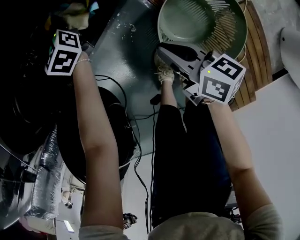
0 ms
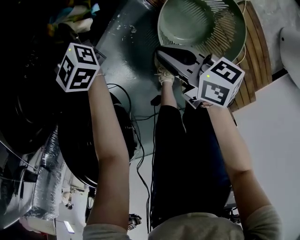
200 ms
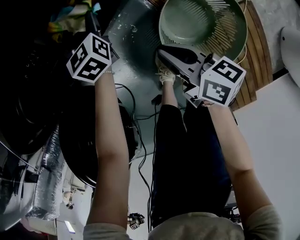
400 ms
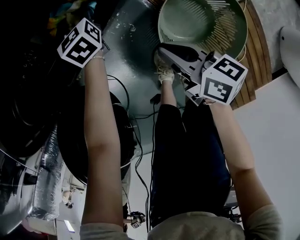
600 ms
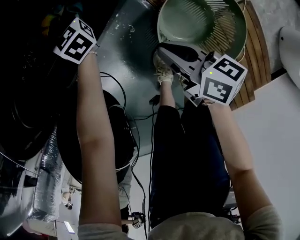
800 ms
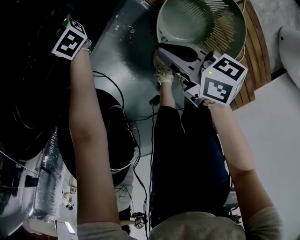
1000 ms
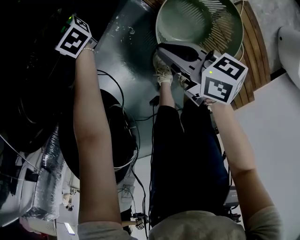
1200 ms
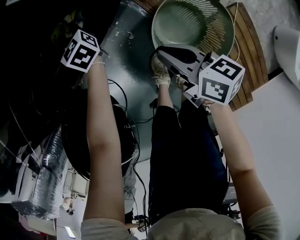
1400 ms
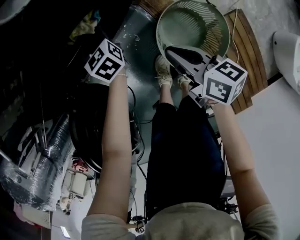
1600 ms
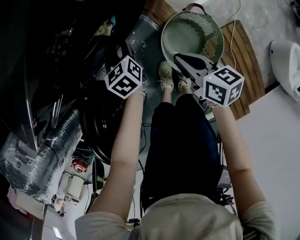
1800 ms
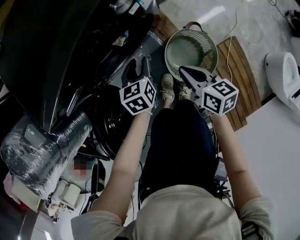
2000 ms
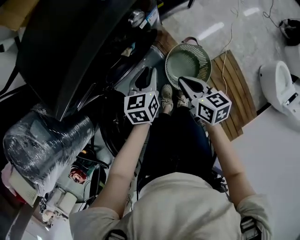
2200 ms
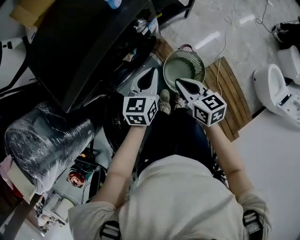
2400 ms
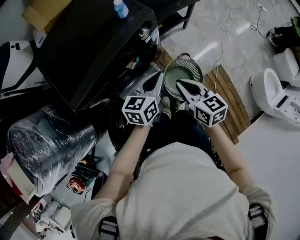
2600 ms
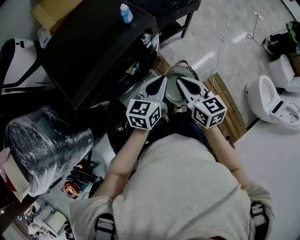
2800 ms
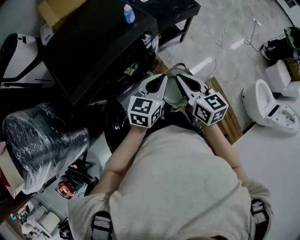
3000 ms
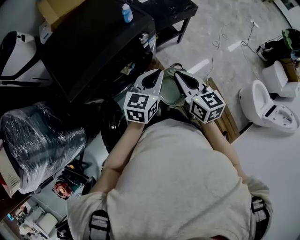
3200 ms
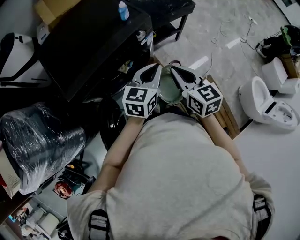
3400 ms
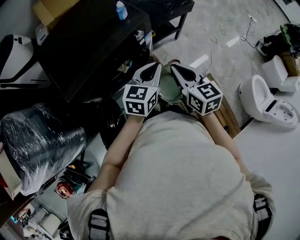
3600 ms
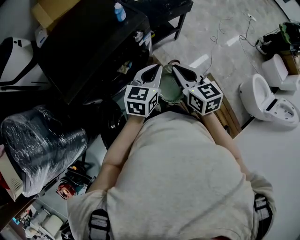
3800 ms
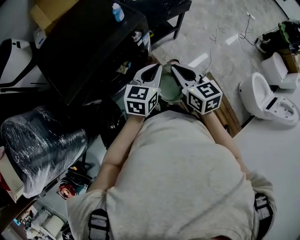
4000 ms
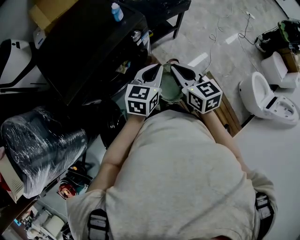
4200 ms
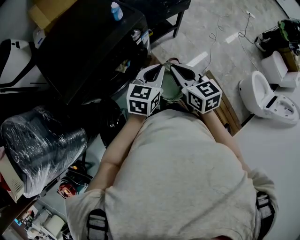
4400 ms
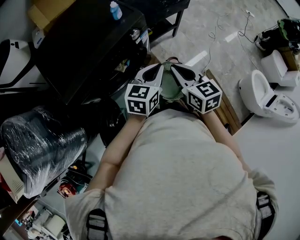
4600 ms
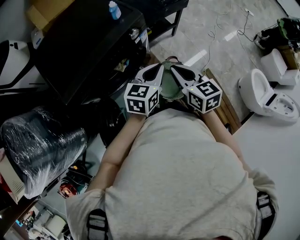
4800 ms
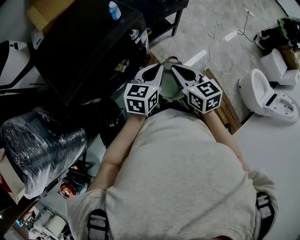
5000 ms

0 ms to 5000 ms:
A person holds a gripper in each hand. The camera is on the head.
0 ms to 1600 ms: The right gripper goes approximately 10 cm upward; the left gripper goes forward and backward, some 15 cm each way, reversing 2 times.
1600 ms to 3400 ms: The two grippers go roughly 40 cm upward. The left gripper turns by about 50 degrees, and closes up, while the right gripper changes its angle by roughly 40 degrees.
3400 ms to 5000 ms: The grippers move only a little.

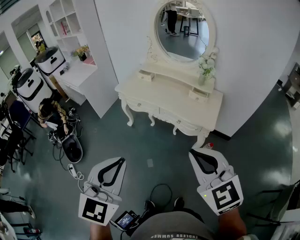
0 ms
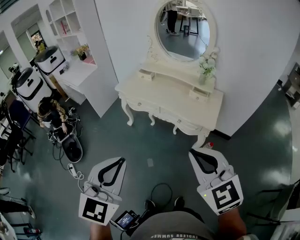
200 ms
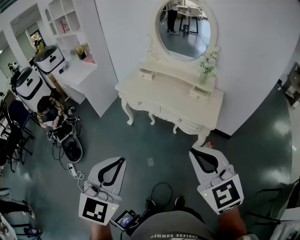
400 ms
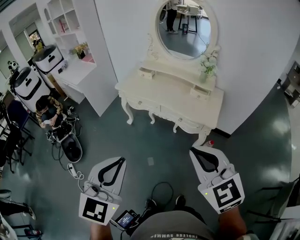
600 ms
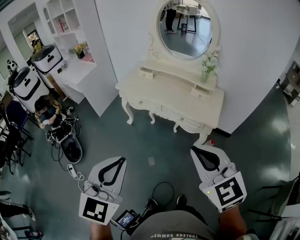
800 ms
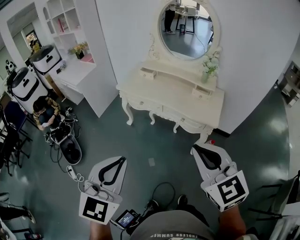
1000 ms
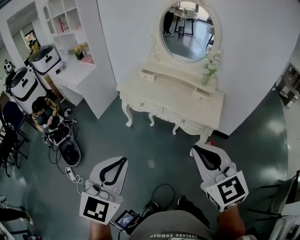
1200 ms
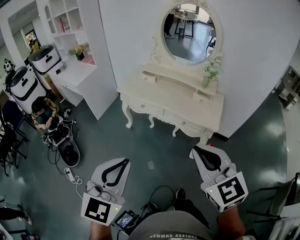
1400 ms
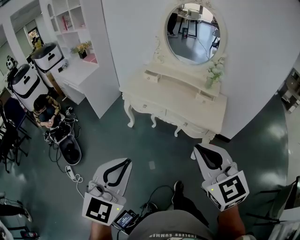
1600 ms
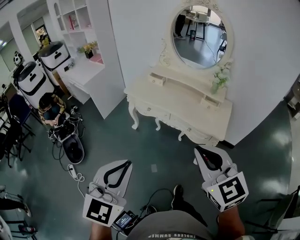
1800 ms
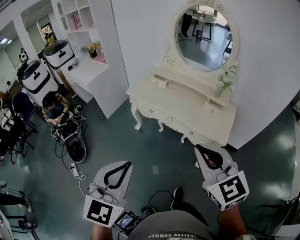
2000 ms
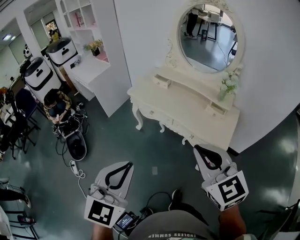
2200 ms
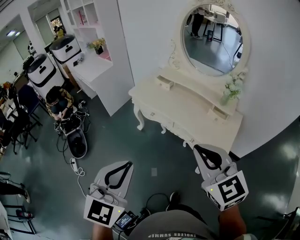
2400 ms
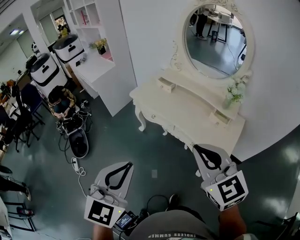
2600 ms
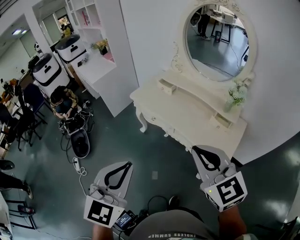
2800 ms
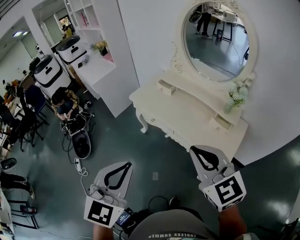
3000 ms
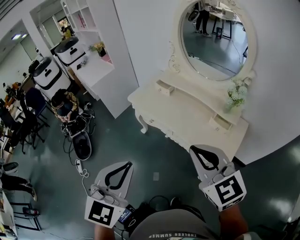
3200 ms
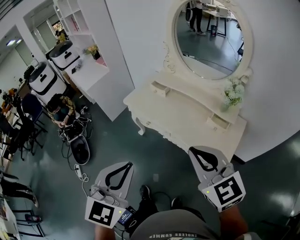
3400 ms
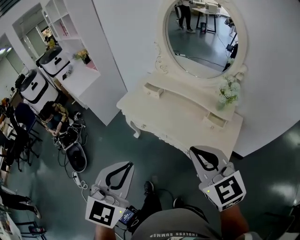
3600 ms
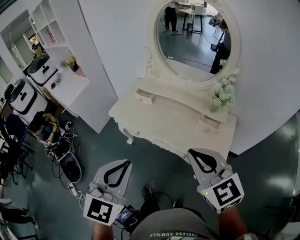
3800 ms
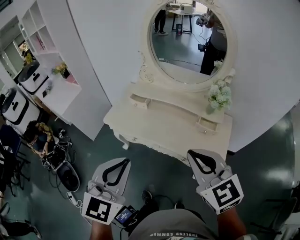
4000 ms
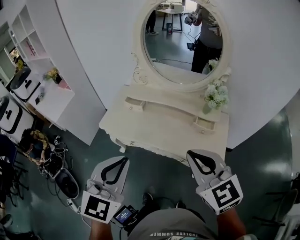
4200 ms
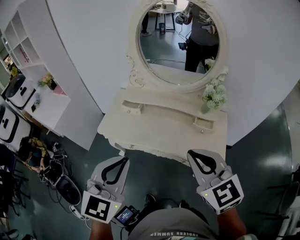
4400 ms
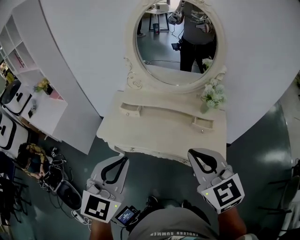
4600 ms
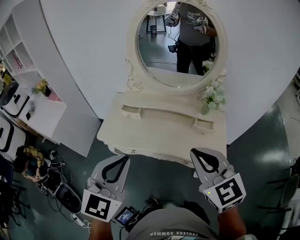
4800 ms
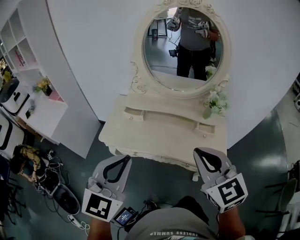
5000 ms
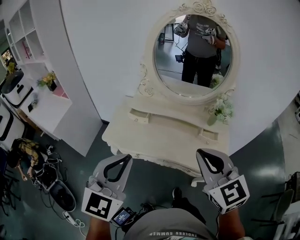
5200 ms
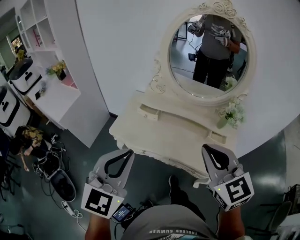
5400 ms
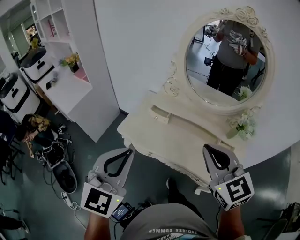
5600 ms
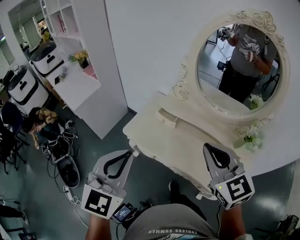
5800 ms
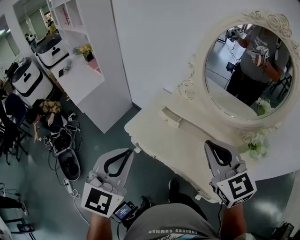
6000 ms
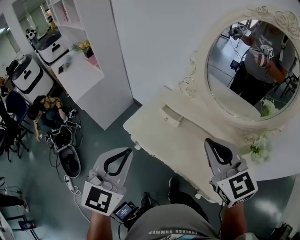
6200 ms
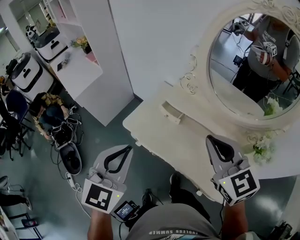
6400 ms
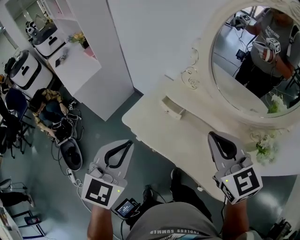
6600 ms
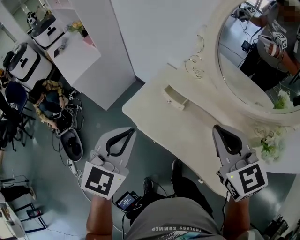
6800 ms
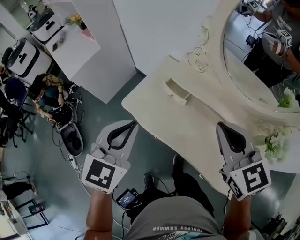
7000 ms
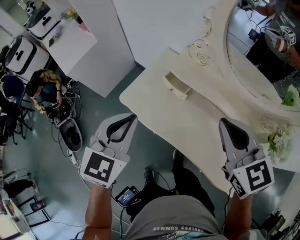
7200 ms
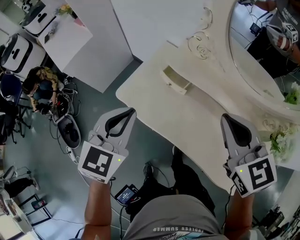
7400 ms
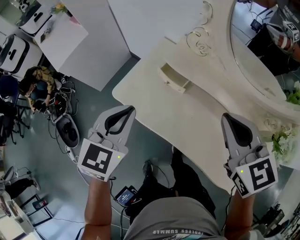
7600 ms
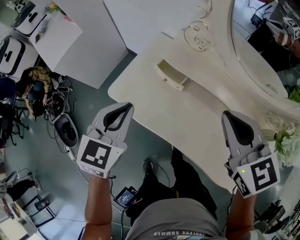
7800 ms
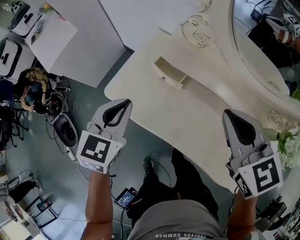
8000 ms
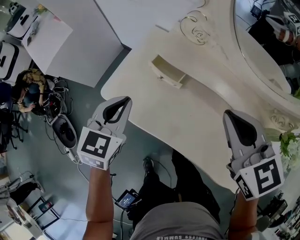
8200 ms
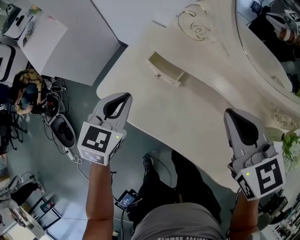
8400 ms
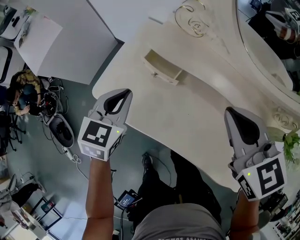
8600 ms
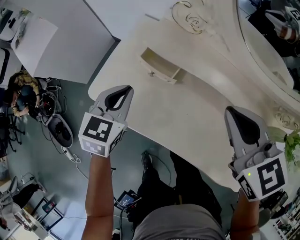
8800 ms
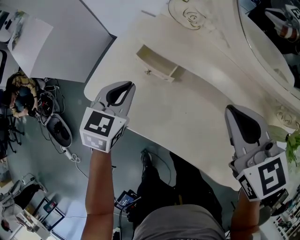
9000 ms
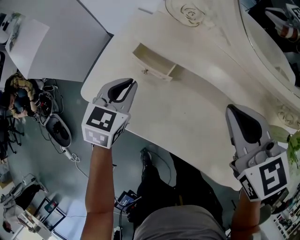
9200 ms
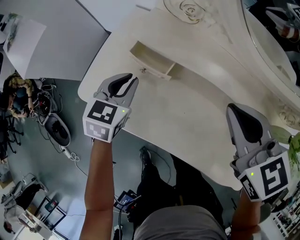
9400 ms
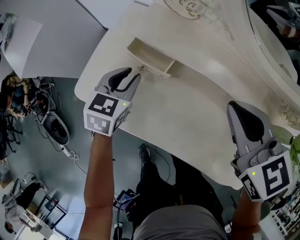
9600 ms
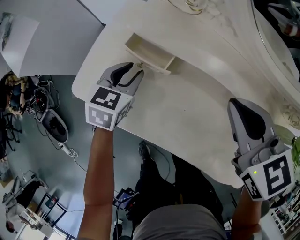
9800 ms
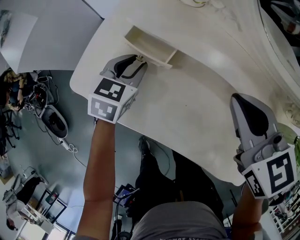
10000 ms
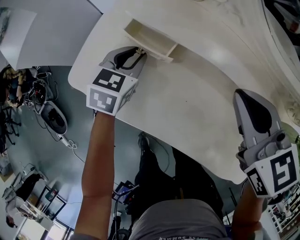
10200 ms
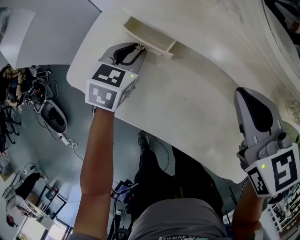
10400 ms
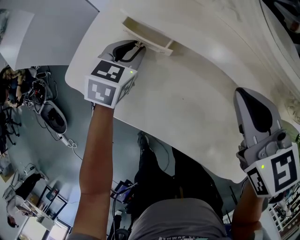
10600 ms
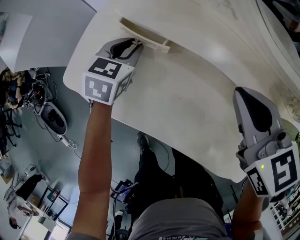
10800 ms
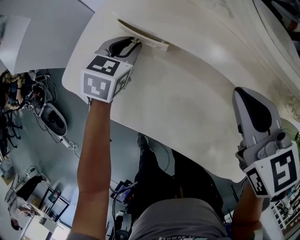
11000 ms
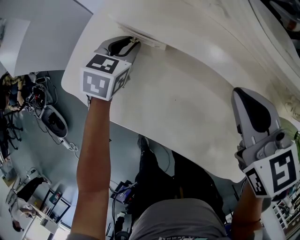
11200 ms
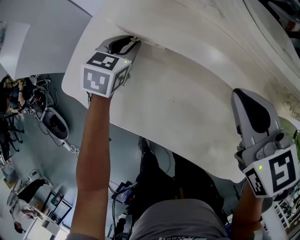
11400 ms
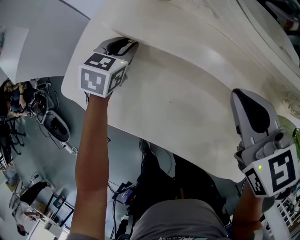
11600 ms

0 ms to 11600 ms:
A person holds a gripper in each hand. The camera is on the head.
0 ms to 1400 ms: Both grippers travel together to the left, some 10 cm.
1400 ms to 2800 ms: Both grippers travel together forward and to the right, roughly 20 cm.
2800 ms to 4400 ms: The right gripper heads forward, covering some 15 cm, and rotates about 20 degrees. Meanwhile the left gripper heads forward, covering some 25 cm, and swivels some 20 degrees.
4400 ms to 5800 ms: The left gripper shifts roughly 15 cm to the left and forward; the right gripper heads forward and to the left, covering approximately 20 cm.
5800 ms to 7200 ms: Both grippers move forward and downward, about 20 cm.
7200 ms to 8800 ms: The right gripper heads downward and forward, covering some 15 cm; the left gripper moves downward and forward, about 25 cm.
8800 ms to 10200 ms: The left gripper heads downward, forward and to the right, covering approximately 15 cm, and opens up; the right gripper goes about 5 cm downward.
10200 ms to 11600 ms: The left gripper moves forward, some 5 cm. Meanwhile the right gripper heads to the right, covering about 5 cm.

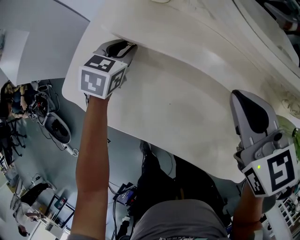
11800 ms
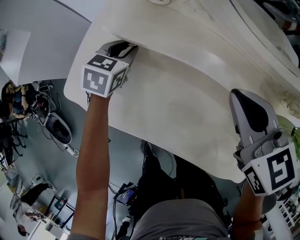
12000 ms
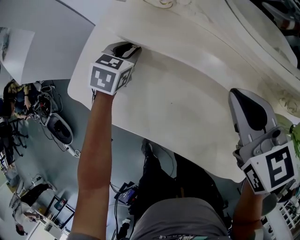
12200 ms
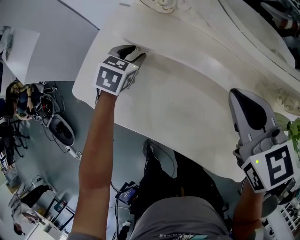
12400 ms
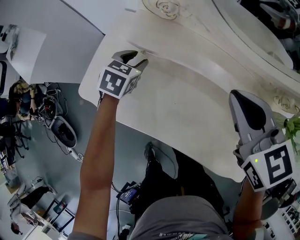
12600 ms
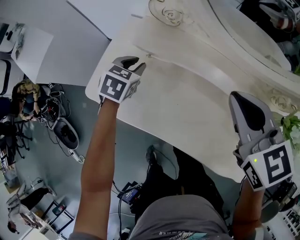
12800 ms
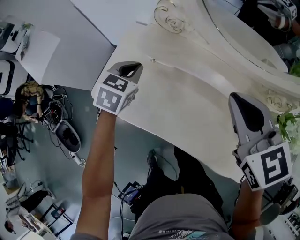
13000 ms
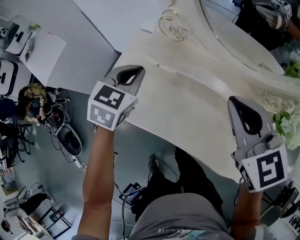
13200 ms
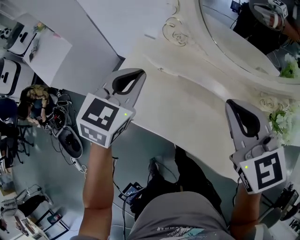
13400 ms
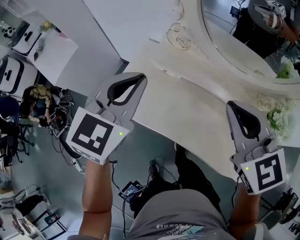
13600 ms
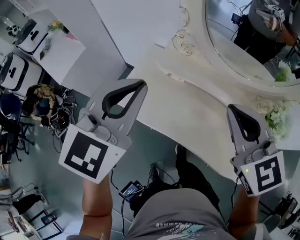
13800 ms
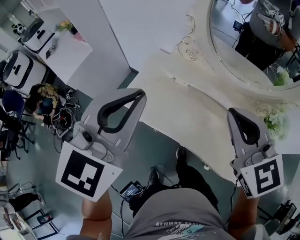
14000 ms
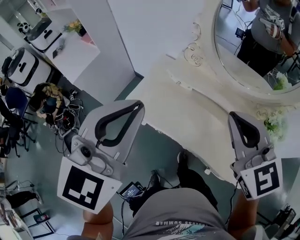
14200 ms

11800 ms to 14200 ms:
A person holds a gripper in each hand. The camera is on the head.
11800 ms to 13000 ms: The right gripper goes some 15 cm upward. Meanwhile the left gripper is displaced upward and backward by some 15 cm, and closes its fingers.
13000 ms to 14200 ms: The right gripper is displaced upward, backward and to the left by approximately 25 cm. The left gripper is displaced upward and backward by approximately 50 cm, and tilts its fingers approximately 30 degrees upward.

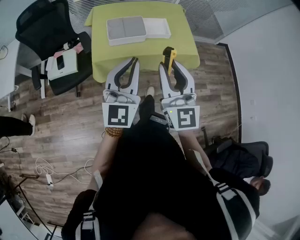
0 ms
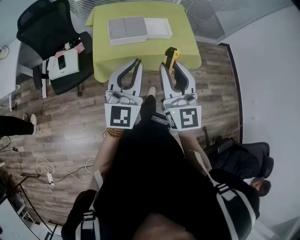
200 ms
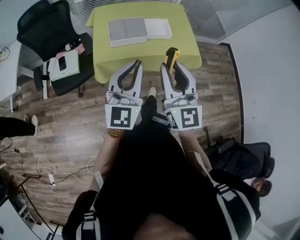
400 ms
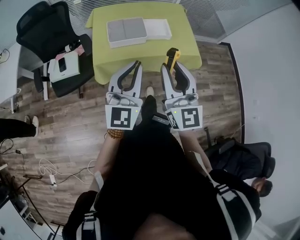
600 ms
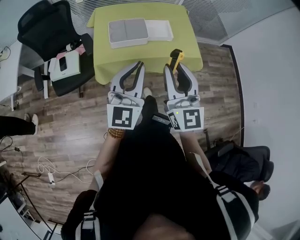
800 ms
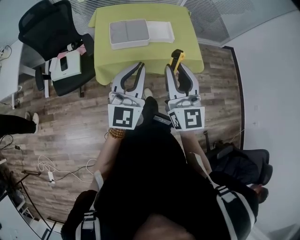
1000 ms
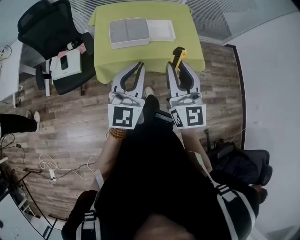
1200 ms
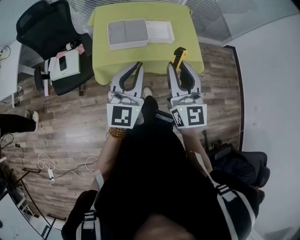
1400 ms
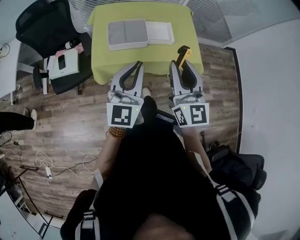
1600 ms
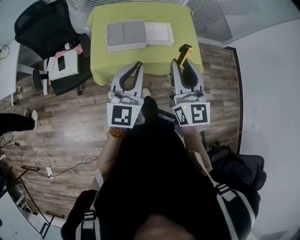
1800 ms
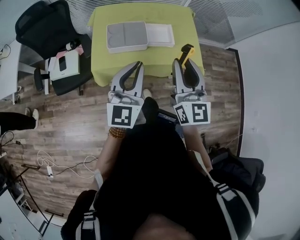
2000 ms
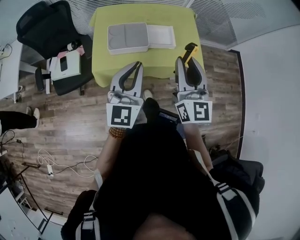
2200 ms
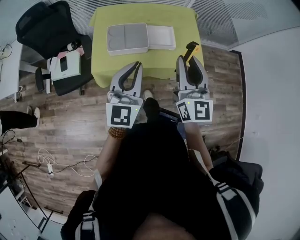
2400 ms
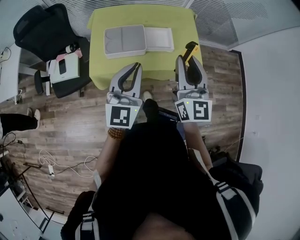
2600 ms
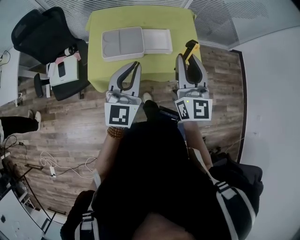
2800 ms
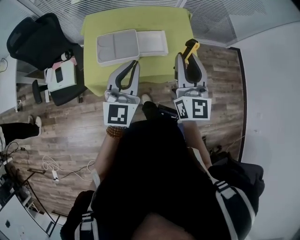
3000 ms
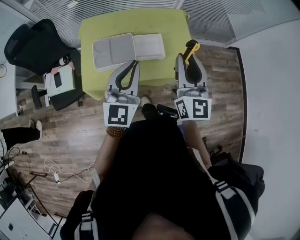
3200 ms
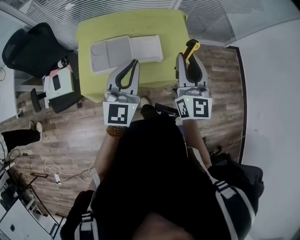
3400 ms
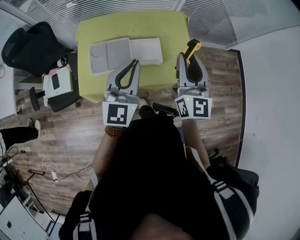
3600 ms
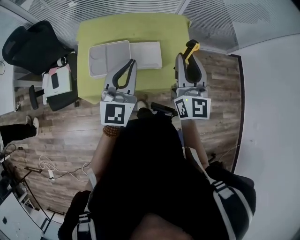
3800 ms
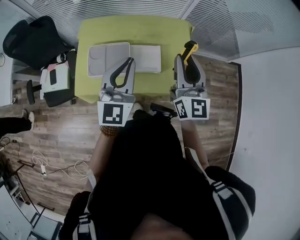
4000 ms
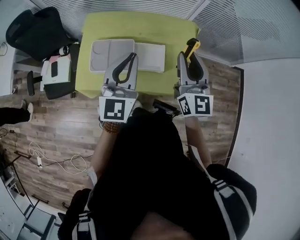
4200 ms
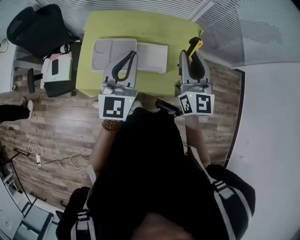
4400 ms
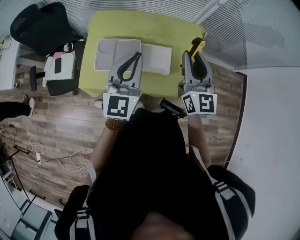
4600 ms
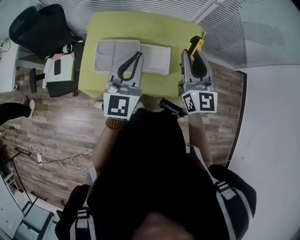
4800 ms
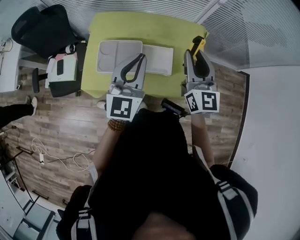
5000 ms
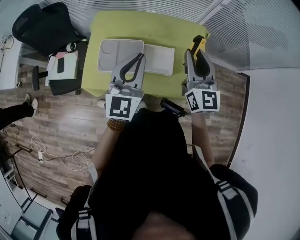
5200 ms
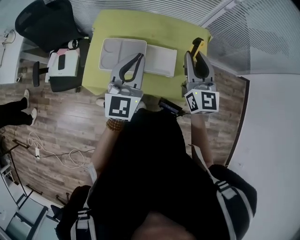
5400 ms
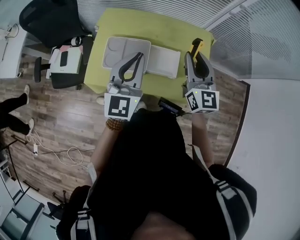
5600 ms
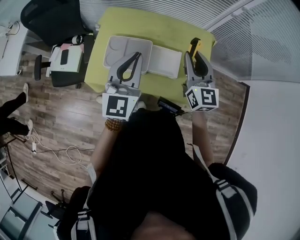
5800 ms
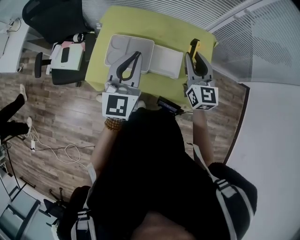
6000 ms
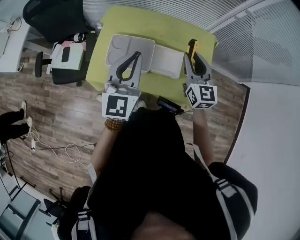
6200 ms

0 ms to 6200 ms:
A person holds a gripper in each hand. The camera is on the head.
0 ms to 1600 ms: The left gripper travels forward by roughly 10 cm, while the right gripper goes about 10 cm forward and to the right.
1600 ms to 3200 ms: Both grippers travel together forward and to the right, approximately 20 cm.
3200 ms to 4600 ms: Both grippers move forward, roughly 10 cm.
4600 ms to 6200 ms: The left gripper shifts approximately 5 cm to the left. The right gripper shifts roughly 10 cm downward.
